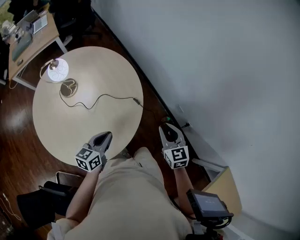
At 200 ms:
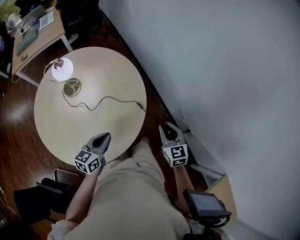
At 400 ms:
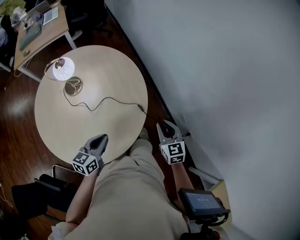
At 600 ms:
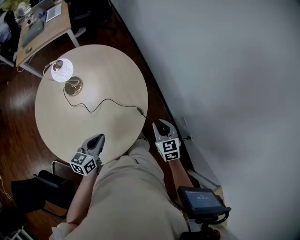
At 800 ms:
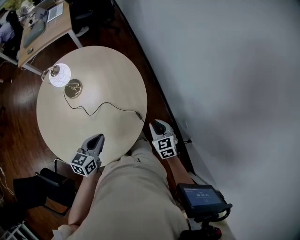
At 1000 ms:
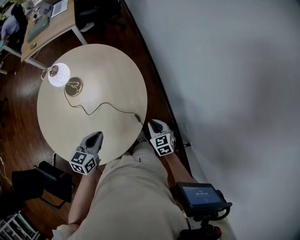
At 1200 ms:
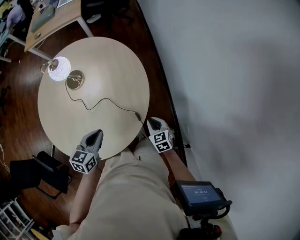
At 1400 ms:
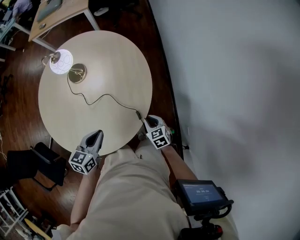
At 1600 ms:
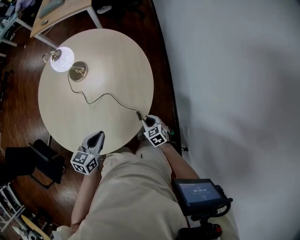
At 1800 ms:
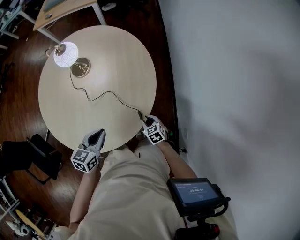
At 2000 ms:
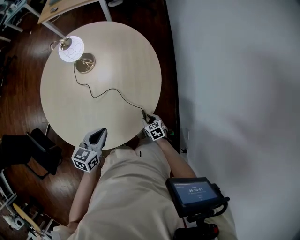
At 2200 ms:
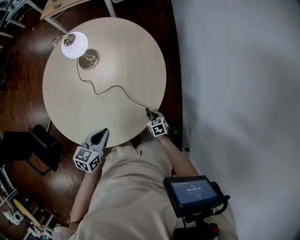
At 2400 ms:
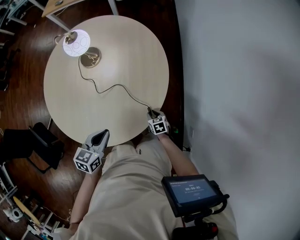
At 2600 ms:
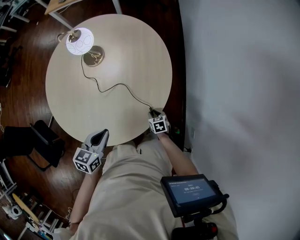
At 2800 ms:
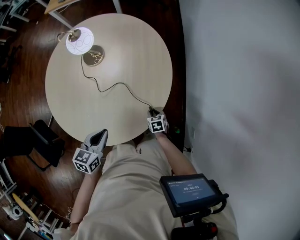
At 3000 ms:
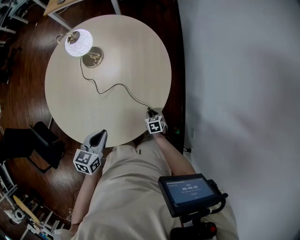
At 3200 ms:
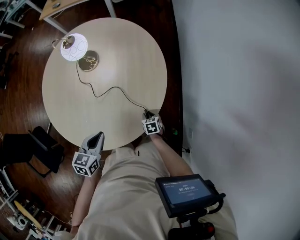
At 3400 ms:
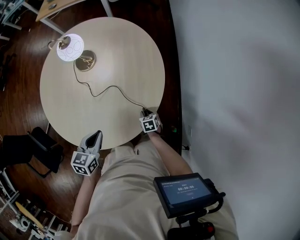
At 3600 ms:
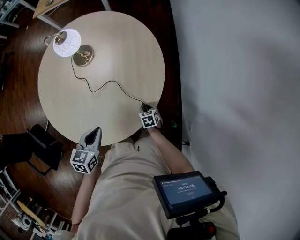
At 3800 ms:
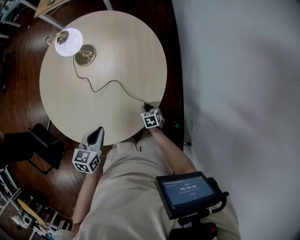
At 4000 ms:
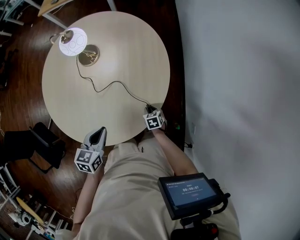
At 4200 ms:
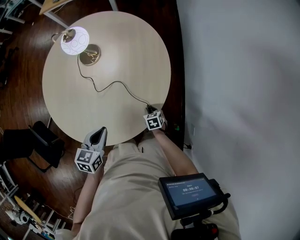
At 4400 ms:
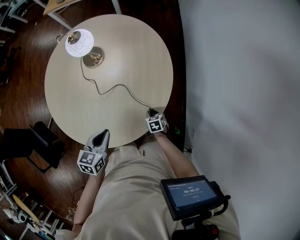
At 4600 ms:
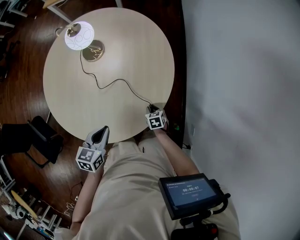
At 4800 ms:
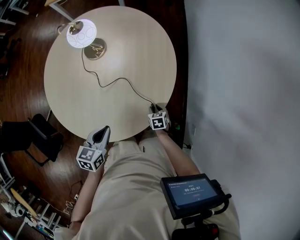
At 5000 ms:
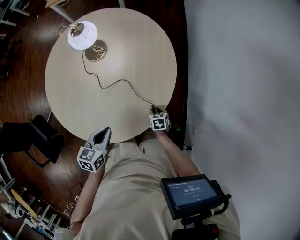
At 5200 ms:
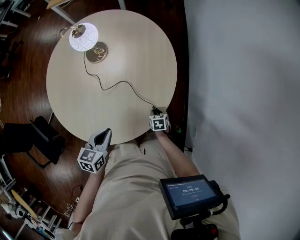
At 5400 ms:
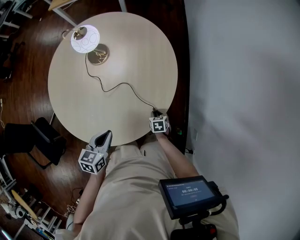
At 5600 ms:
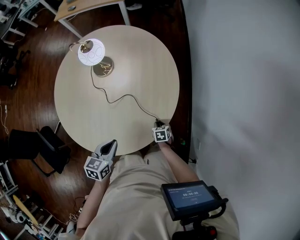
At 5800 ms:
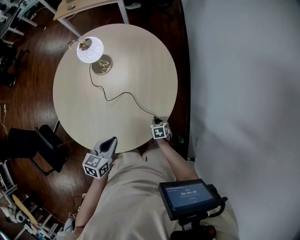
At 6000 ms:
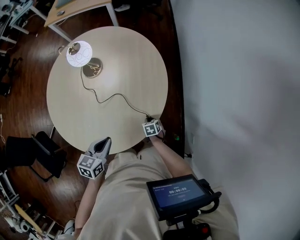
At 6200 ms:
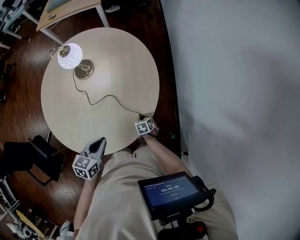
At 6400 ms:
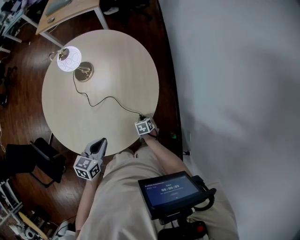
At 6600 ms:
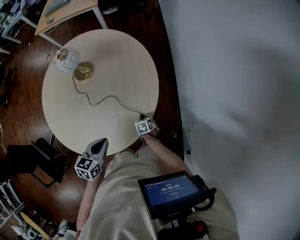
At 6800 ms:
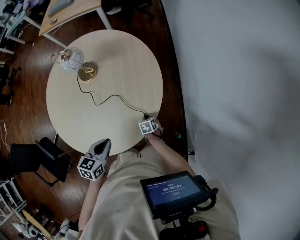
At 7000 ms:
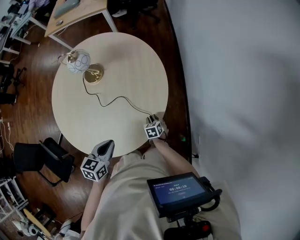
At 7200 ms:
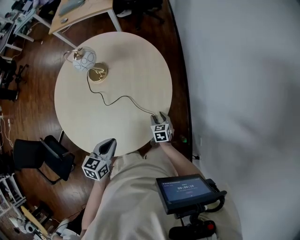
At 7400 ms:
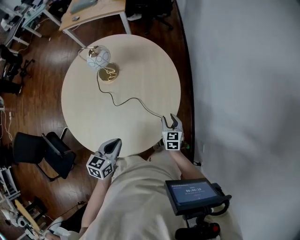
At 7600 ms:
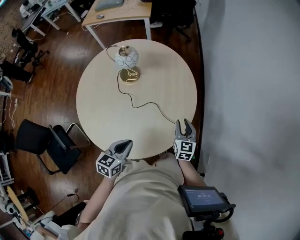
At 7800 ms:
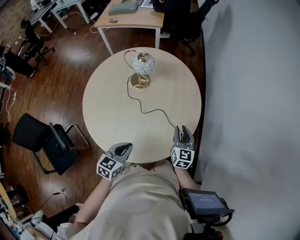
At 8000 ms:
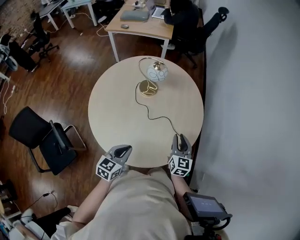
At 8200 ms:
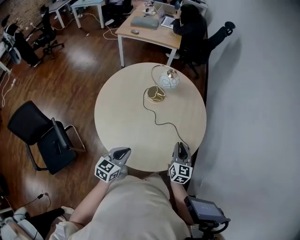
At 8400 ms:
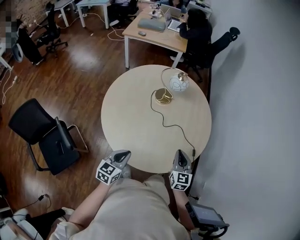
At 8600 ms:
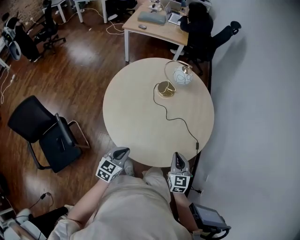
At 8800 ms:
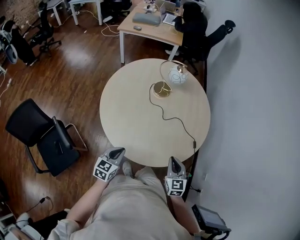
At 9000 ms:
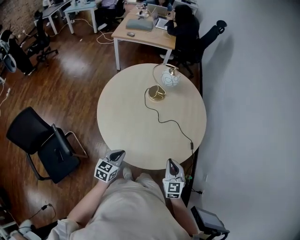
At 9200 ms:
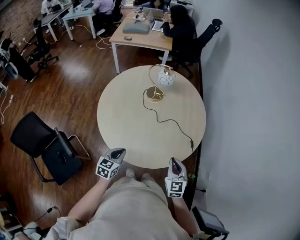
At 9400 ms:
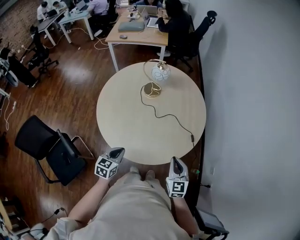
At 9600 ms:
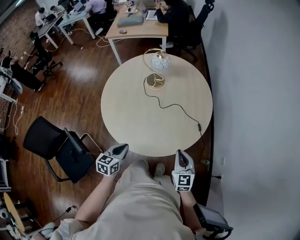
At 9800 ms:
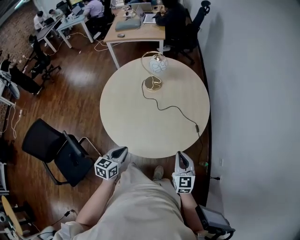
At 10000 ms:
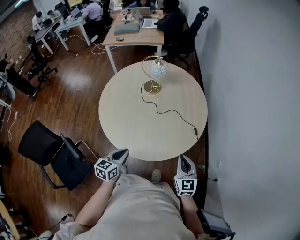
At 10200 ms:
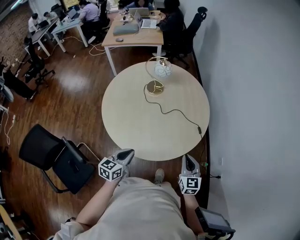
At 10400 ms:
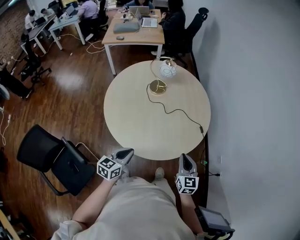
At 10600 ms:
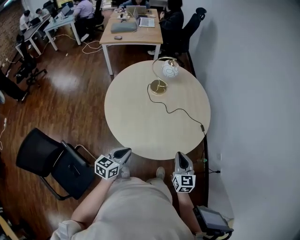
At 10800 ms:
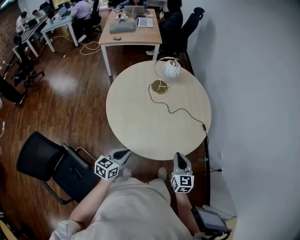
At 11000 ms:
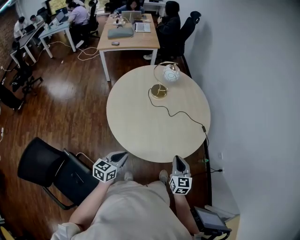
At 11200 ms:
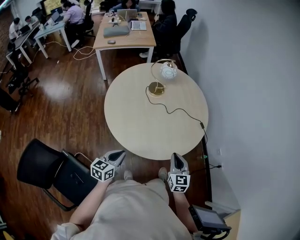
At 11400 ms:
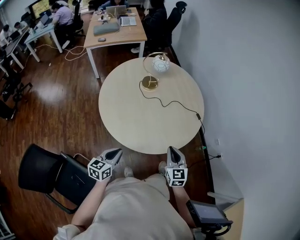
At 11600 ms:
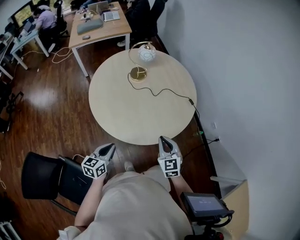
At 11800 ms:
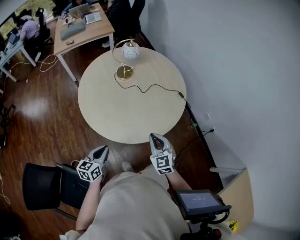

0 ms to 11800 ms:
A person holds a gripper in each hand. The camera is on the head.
0 ms to 1400 ms: The right gripper goes some 20 cm downward, and swivels roughly 40 degrees, while the left gripper moves about 10 cm, and turns by roughly 30 degrees.
1400 ms to 3000 ms: The right gripper is displaced downward by approximately 15 cm, while the left gripper ends up approximately 5 cm from where it was.
3000 ms to 4400 ms: Both grippers stay about where they are.
4400 ms to 6000 ms: The grippers make only small movements.
6000 ms to 7400 ms: The right gripper moves upward, roughly 15 cm, and swivels roughly 30 degrees.
7400 ms to 8800 ms: The left gripper travels to the left and backward by some 30 cm. Meanwhile the right gripper travels to the left, backward and upward by roughly 40 cm, and closes its fingers.
8800 ms to 10400 ms: The left gripper goes to the right and returns, roughly 5 cm each way. Meanwhile the right gripper heads backward, covering roughly 5 cm, and travels to the right and back again, roughly 10 cm each way.
10400 ms to 11800 ms: The grippers both shift to the left and backward by about 15 cm.

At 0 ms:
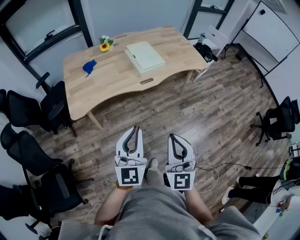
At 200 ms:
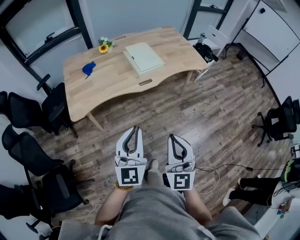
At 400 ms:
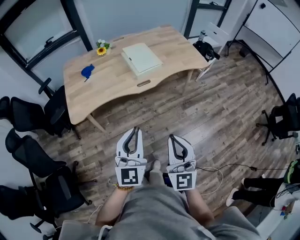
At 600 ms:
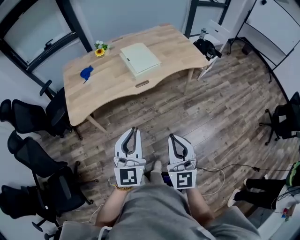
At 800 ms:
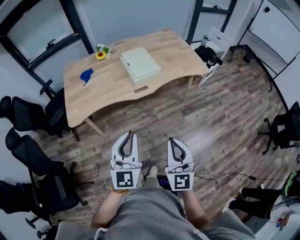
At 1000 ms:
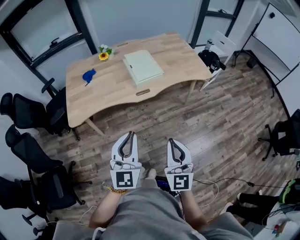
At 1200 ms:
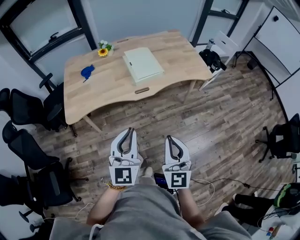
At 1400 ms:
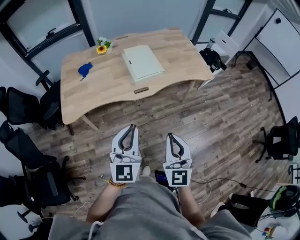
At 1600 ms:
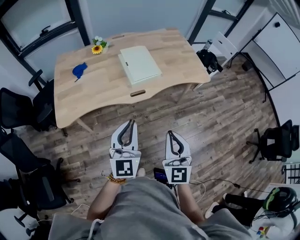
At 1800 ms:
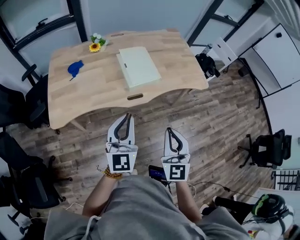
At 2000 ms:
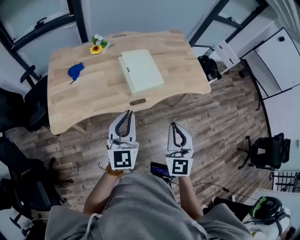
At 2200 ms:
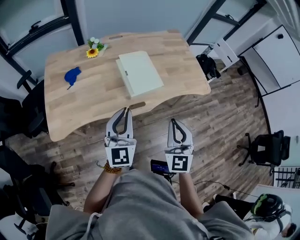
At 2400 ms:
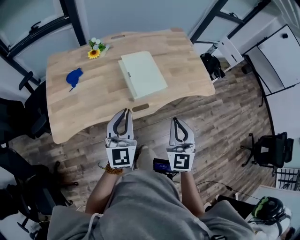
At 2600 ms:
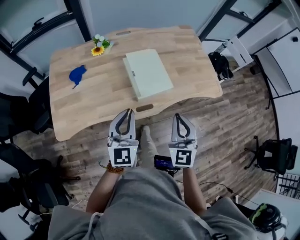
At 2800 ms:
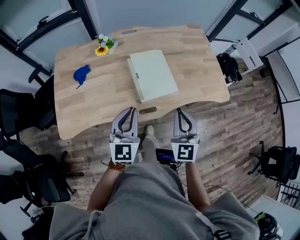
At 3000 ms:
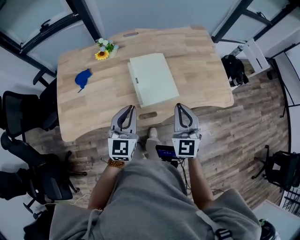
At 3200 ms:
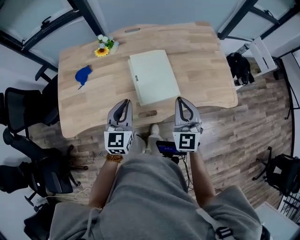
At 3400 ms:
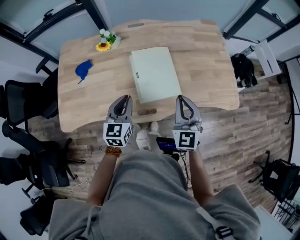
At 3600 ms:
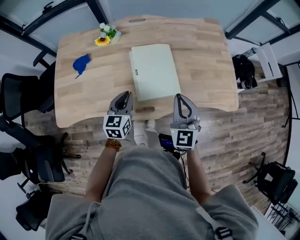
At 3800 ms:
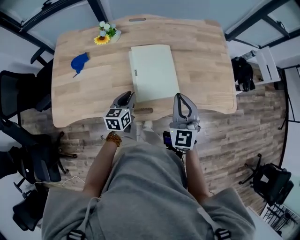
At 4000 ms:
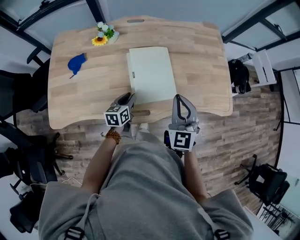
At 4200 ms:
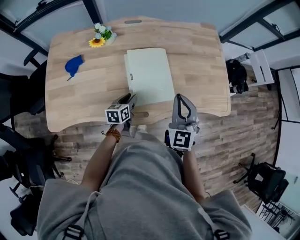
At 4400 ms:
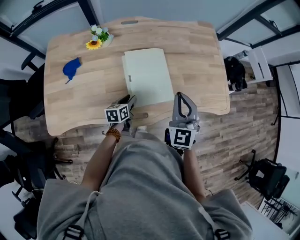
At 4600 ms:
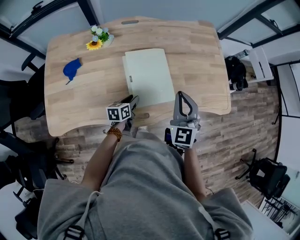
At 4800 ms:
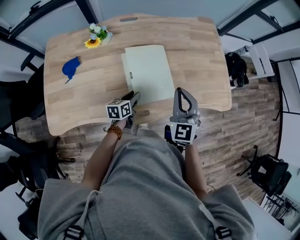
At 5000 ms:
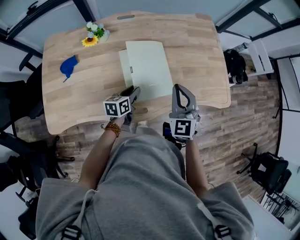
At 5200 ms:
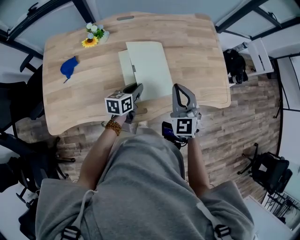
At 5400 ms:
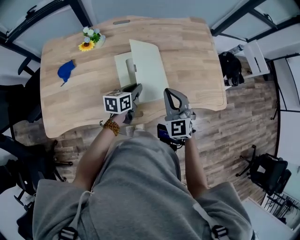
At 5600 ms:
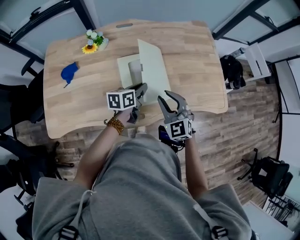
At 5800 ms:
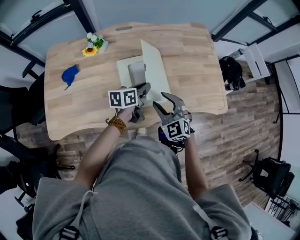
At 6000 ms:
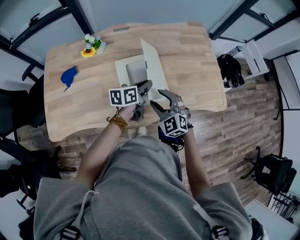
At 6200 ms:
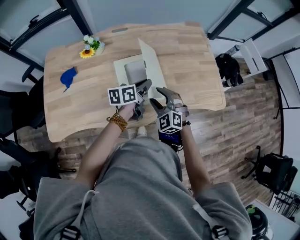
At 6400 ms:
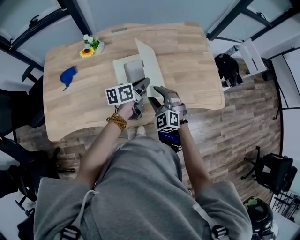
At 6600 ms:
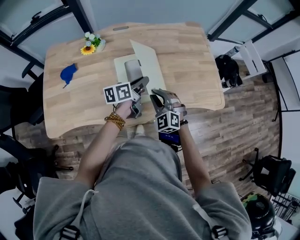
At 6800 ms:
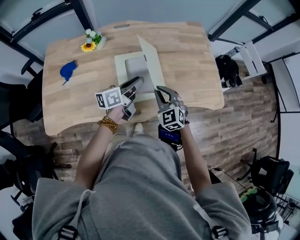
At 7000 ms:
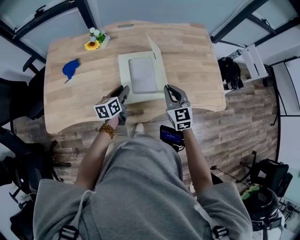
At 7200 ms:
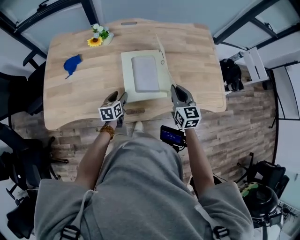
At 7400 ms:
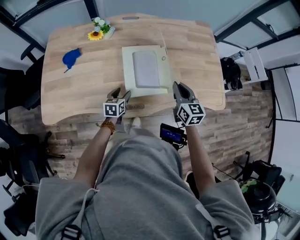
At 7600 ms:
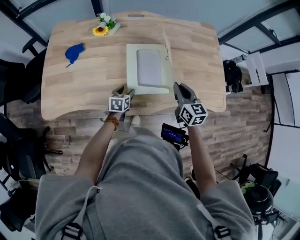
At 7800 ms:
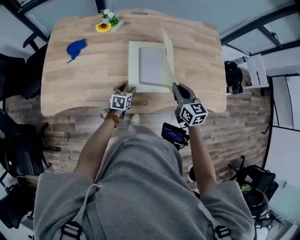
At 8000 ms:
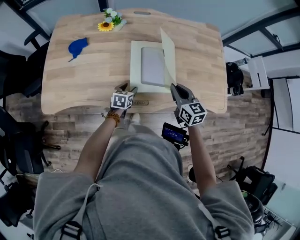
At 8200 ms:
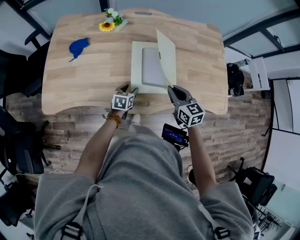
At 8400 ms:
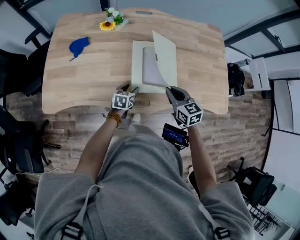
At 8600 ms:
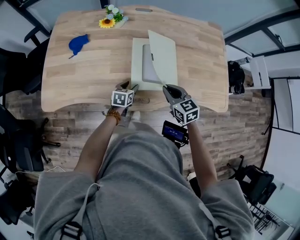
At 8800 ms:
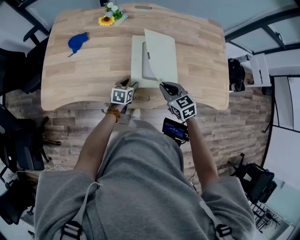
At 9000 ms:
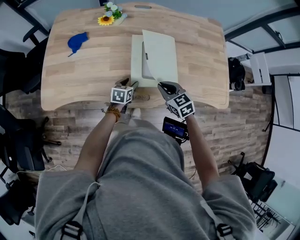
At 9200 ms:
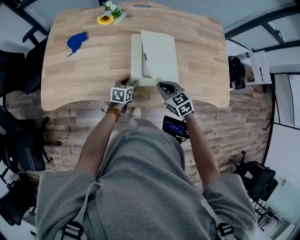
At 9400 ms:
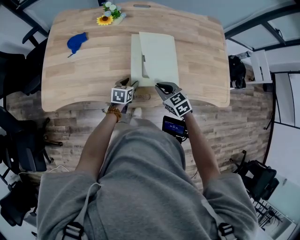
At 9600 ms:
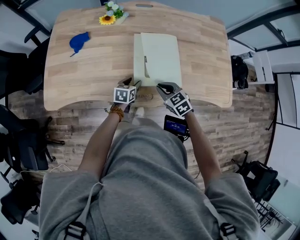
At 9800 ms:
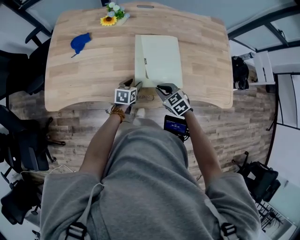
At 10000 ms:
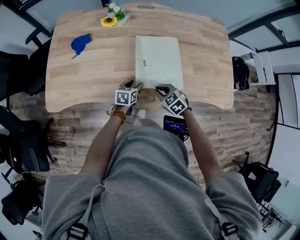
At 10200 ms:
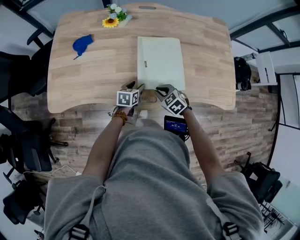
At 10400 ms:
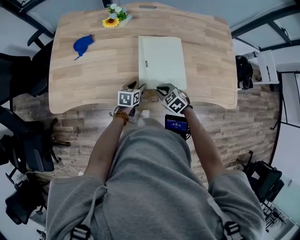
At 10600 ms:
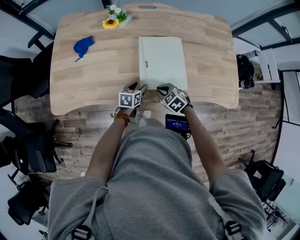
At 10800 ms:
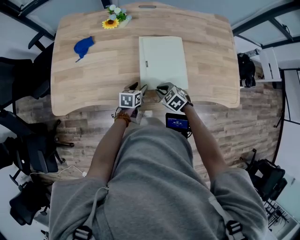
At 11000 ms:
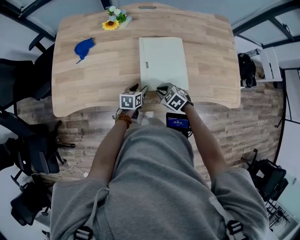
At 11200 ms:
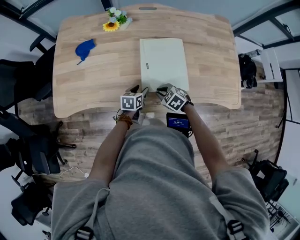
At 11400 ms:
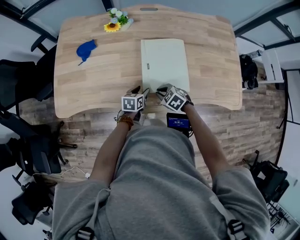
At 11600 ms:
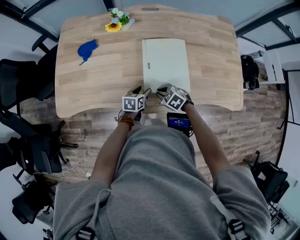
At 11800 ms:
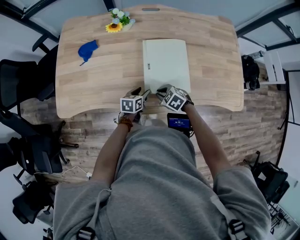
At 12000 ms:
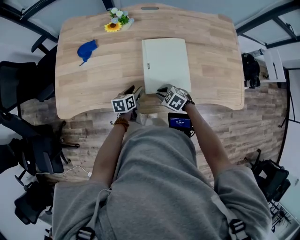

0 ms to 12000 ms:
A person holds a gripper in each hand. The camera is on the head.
0 ms to 1600 ms: The grippers both shift forward and to the right by about 20 cm.
1600 ms to 3000 ms: Both grippers move forward, some 30 cm.
3000 ms to 4400 ms: The right gripper heads forward, covering approximately 10 cm. The left gripper is displaced downward by roughly 25 cm, rotates about 50 degrees, and opens up.
4400 ms to 6000 ms: The right gripper shifts about 10 cm downward, changes its angle by some 30 degrees, and opens its fingers; the left gripper heads upward, to the right and forward, covering about 20 cm, rotates some 20 degrees, and closes its fingers.
6000 ms to 7600 ms: The left gripper is displaced downward, to the left and backward by about 25 cm, swivels approximately 30 degrees, and opens its fingers. The right gripper shifts approximately 5 cm to the right, rotates around the line of its fingers by approximately 40 degrees, clockwise from behind, and closes its fingers.
7600 ms to 9000 ms: The right gripper goes about 10 cm to the left and downward, and rotates some 30 degrees.
9000 ms to 10400 ms: The right gripper is displaced downward by approximately 10 cm, and changes its angle by roughly 20 degrees.
10400 ms to 12000 ms: The grippers stay close to where they were, moving slightly.
